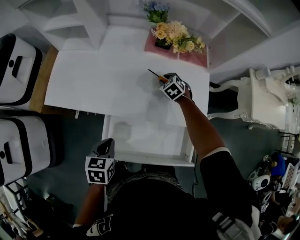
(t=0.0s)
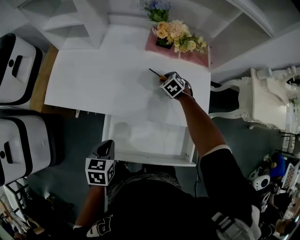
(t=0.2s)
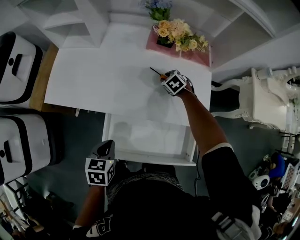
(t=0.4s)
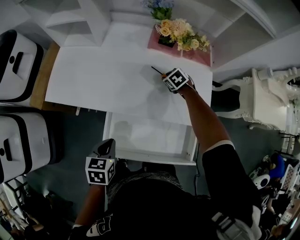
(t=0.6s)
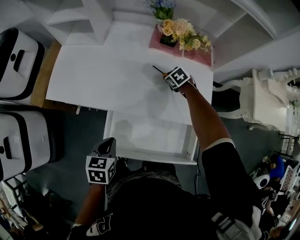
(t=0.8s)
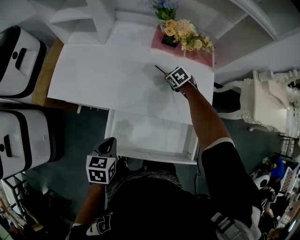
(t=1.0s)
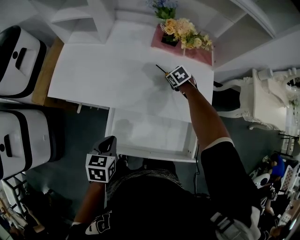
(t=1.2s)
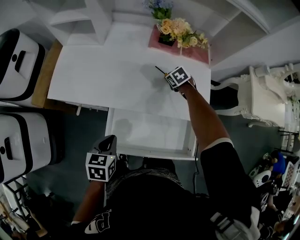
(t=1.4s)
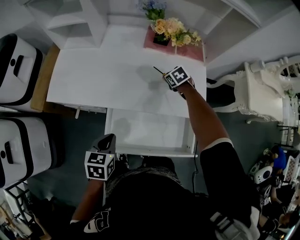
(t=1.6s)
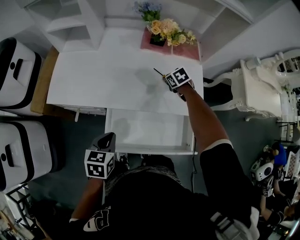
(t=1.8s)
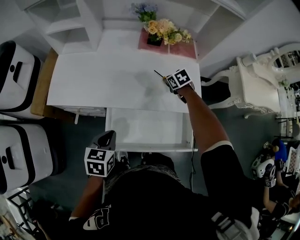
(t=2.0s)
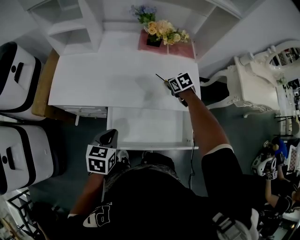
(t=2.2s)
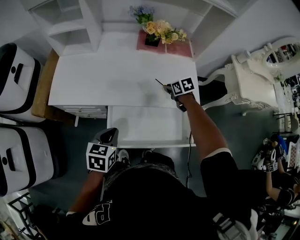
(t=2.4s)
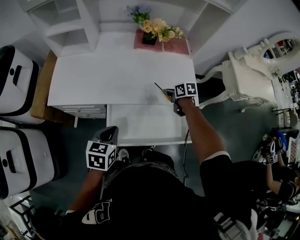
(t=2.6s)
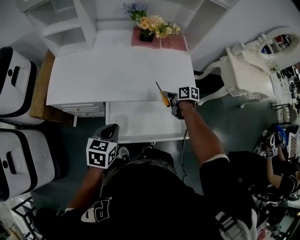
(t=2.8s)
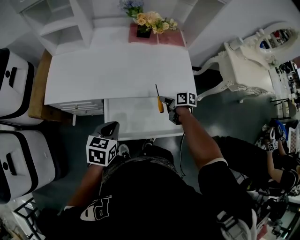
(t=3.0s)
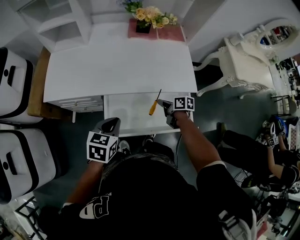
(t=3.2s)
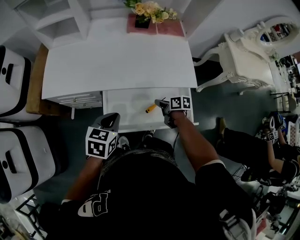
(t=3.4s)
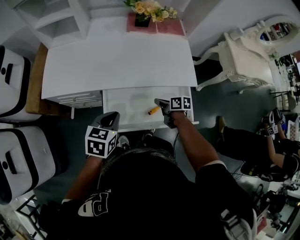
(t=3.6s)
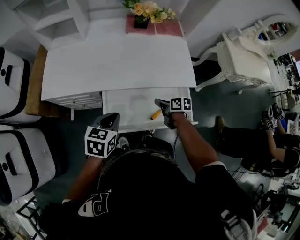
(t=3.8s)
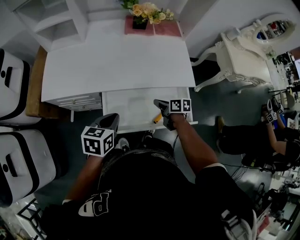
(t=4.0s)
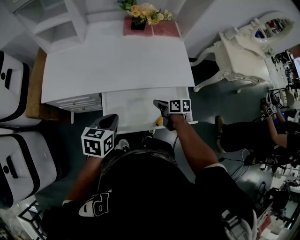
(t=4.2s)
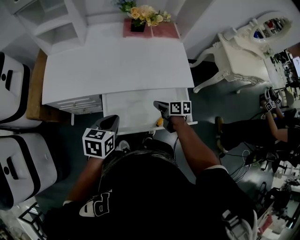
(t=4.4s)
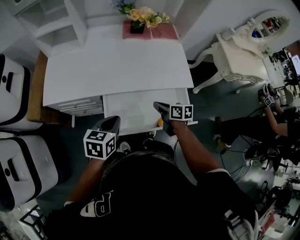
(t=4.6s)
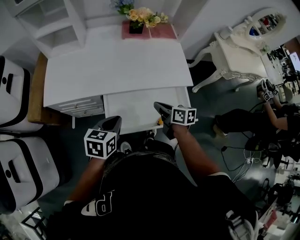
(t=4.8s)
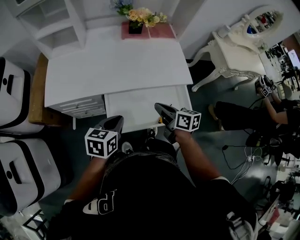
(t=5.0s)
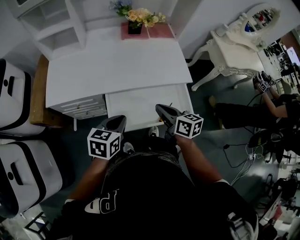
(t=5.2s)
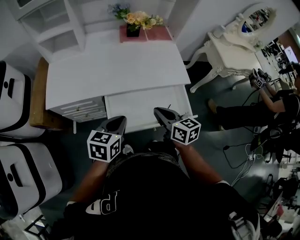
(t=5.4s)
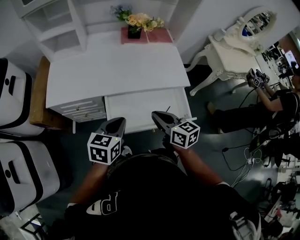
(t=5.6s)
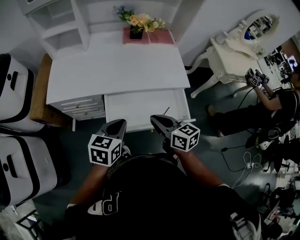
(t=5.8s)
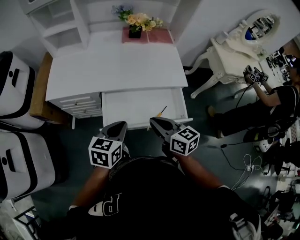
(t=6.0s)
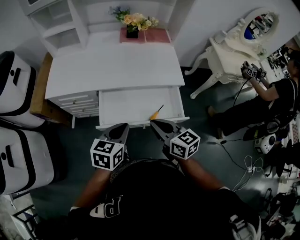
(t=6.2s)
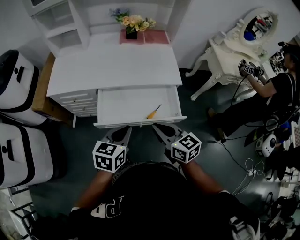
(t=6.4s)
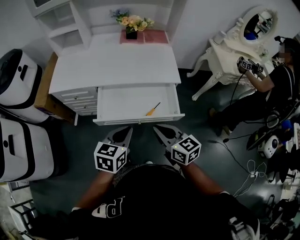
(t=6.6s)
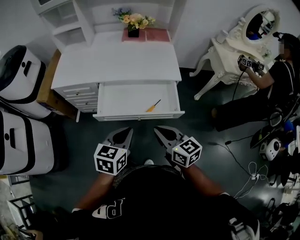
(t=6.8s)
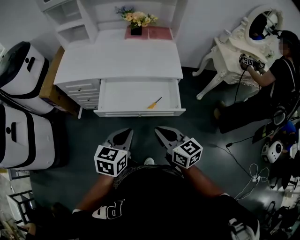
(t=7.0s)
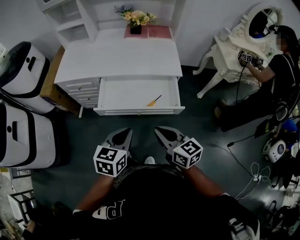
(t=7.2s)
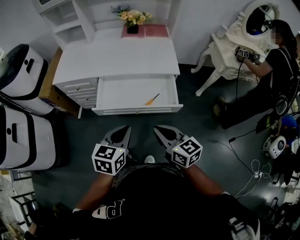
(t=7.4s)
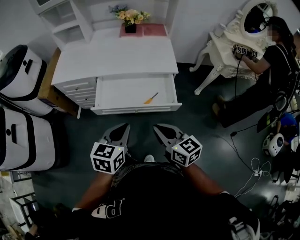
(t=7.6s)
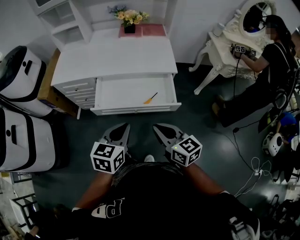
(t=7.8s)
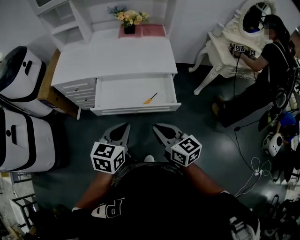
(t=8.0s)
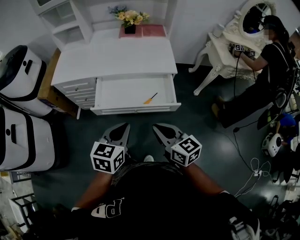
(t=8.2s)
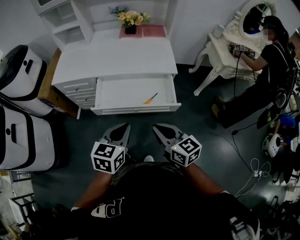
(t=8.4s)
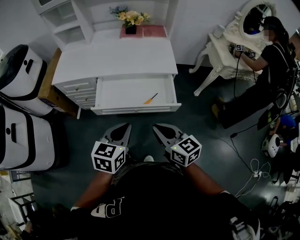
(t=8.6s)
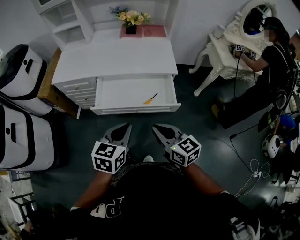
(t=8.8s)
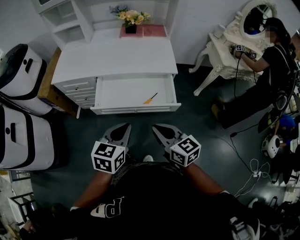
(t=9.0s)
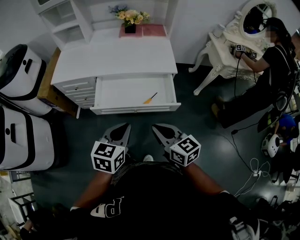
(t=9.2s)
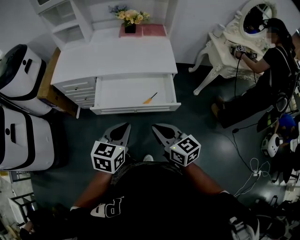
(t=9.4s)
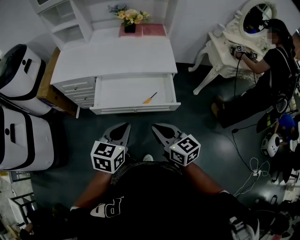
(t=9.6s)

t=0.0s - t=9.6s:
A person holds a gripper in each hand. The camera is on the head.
t=0.0s - t=1.6s: There are only small adjustments of the grippers.
t=1.6s - t=3.2s: The right gripper travels backward by roughly 25 cm, twists about 60 degrees clockwise, seen from behind, and closes.
t=3.2s - t=4.8s: The right gripper shifts roughly 15 cm upward, backward and to the left.
t=4.8s - t=6.4s: The left gripper moves backward and to the right, roughly 20 cm. Meanwhile the right gripper travels backward and upward by about 25 cm, and changes its angle by about 30 degrees.
t=6.4s - t=8.0s: The right gripper shifts about 10 cm backward and to the right. Meanwhile the left gripper heads backward, covering some 10 cm.
t=8.0s - t=9.6s: The two grippers keep their place.

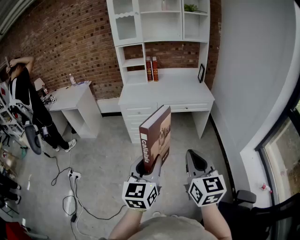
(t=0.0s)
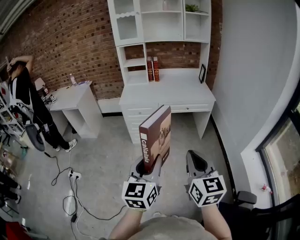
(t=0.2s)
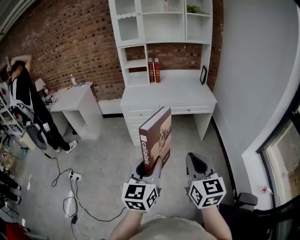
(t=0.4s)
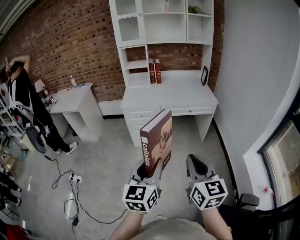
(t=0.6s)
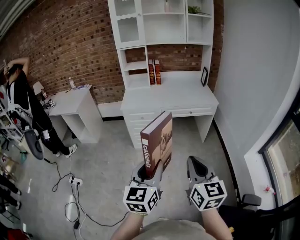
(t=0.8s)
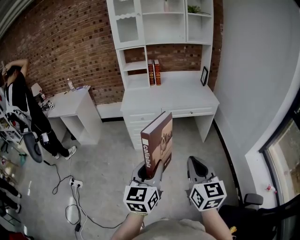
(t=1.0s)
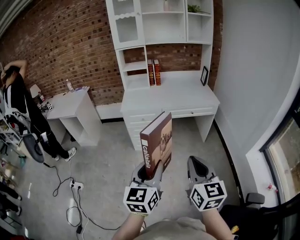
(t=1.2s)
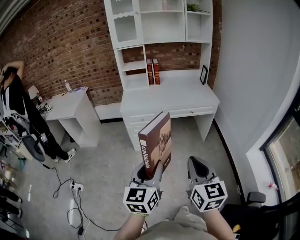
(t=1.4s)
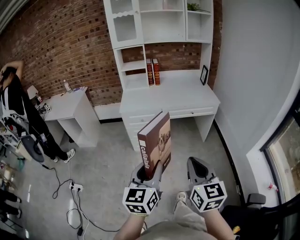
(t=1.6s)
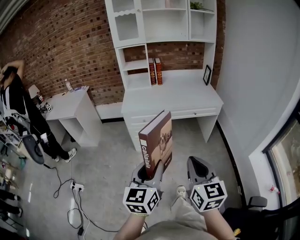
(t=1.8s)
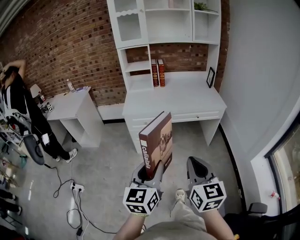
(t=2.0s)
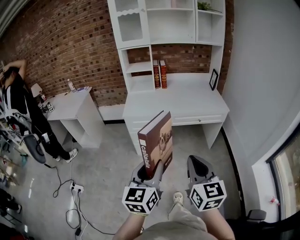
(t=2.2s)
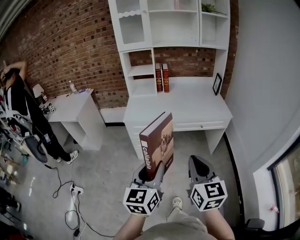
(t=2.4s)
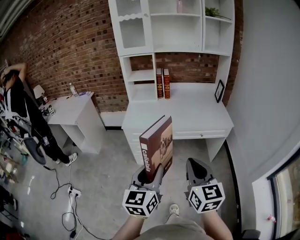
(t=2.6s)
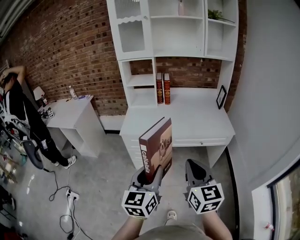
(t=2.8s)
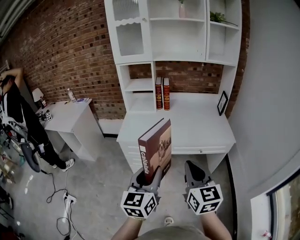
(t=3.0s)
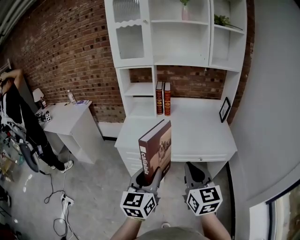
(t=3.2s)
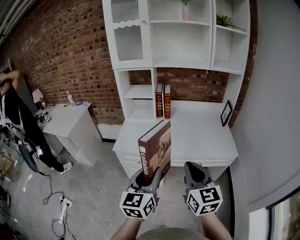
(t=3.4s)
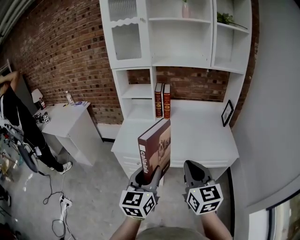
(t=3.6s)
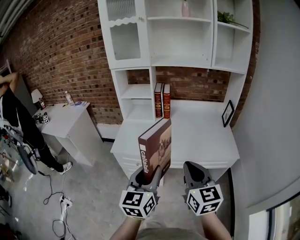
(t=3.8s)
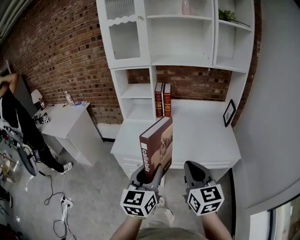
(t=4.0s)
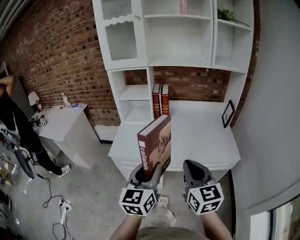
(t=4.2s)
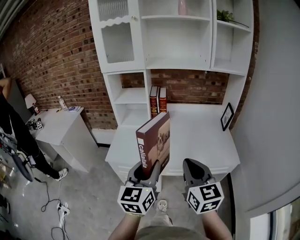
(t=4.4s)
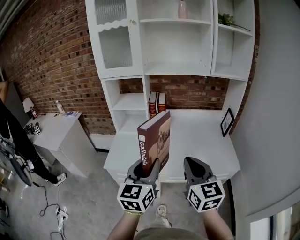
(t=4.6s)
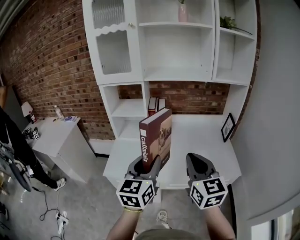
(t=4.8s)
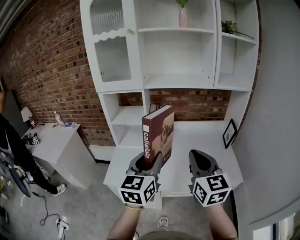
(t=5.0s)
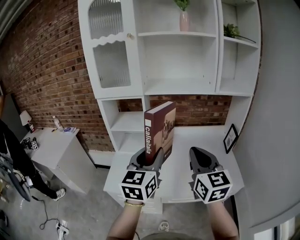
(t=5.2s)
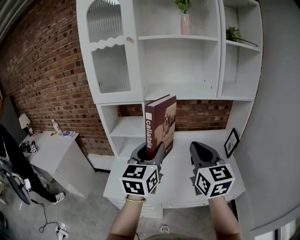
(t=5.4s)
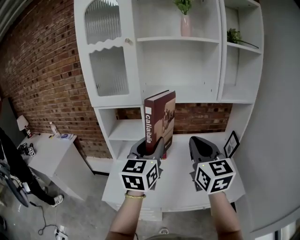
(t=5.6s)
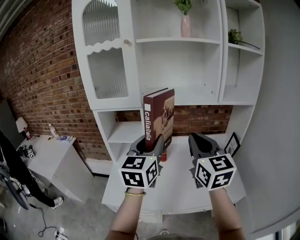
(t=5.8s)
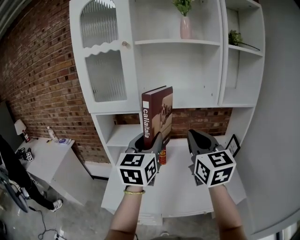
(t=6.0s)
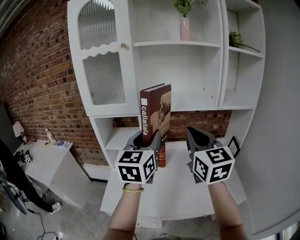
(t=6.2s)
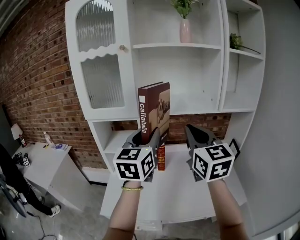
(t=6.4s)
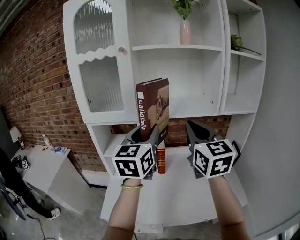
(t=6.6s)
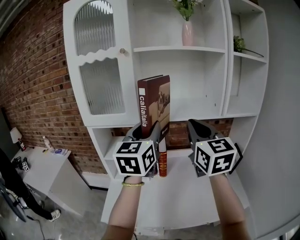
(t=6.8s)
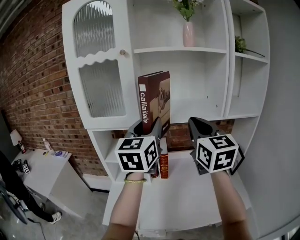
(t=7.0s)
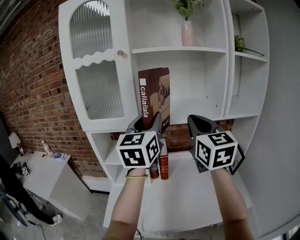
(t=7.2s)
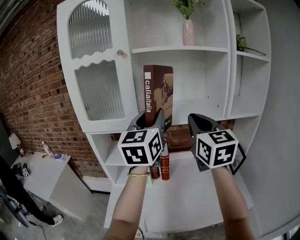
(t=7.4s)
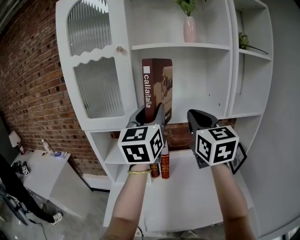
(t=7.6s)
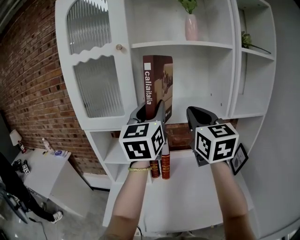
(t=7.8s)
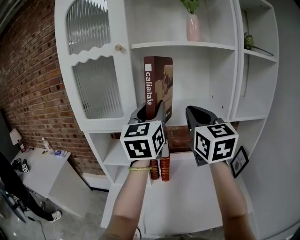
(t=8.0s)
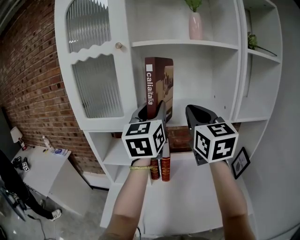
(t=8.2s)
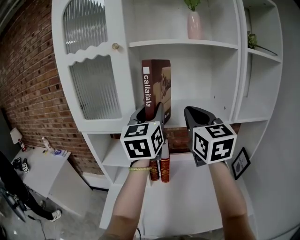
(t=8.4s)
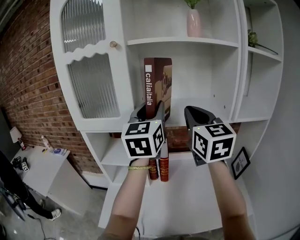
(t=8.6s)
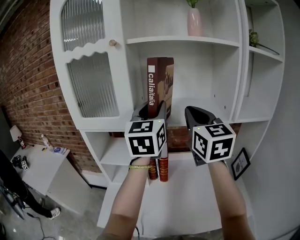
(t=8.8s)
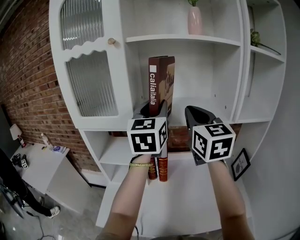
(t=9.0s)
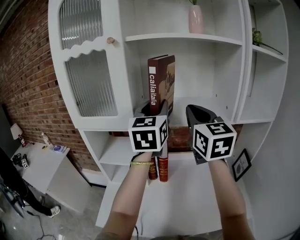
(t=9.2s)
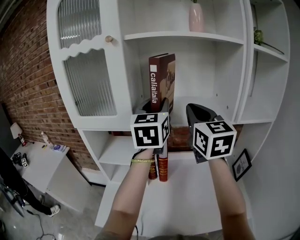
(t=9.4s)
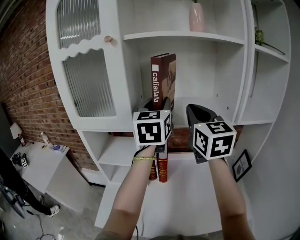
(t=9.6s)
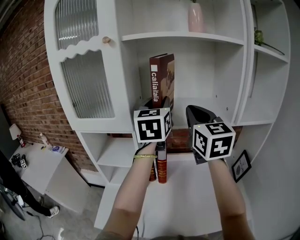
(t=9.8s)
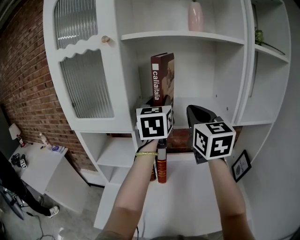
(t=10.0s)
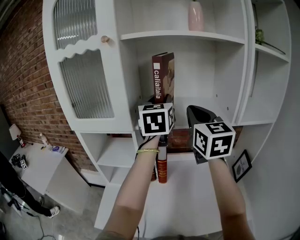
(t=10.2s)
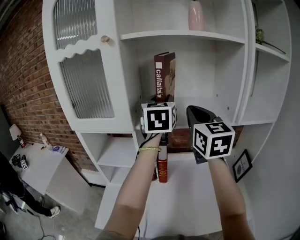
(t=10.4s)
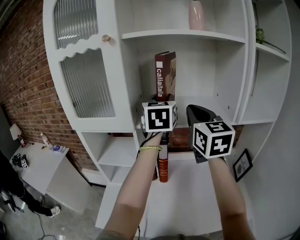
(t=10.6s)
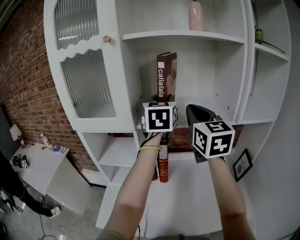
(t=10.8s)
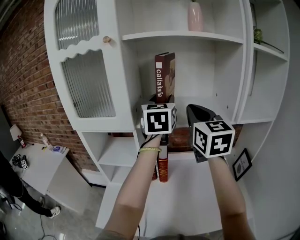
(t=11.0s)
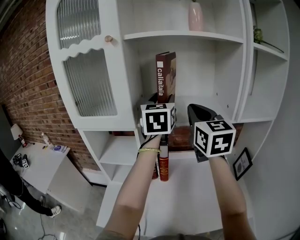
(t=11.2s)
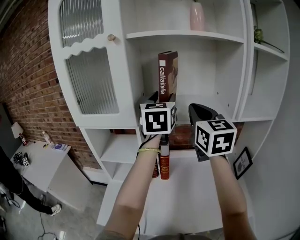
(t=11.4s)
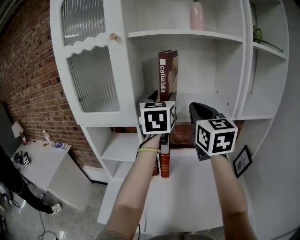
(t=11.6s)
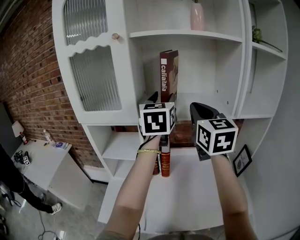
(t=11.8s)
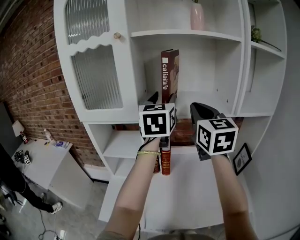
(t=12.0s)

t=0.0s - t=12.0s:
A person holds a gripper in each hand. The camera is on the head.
t=0.0s - t=1.6s: Both grippers move forward and to the left, approximately 10 cm.
t=1.6s - t=3.0s: The two grippers go approximately 30 cm forward.
t=3.0s - t=4.4s: Both grippers travel together forward, roughly 20 cm.
t=4.4s - t=6.0s: The grippers both shift forward and upward by roughly 35 cm.
t=6.0s - t=7.6s: The two grippers go roughly 15 cm forward and upward.
t=7.6s - t=9.0s: Both grippers move forward, roughly 5 cm.
t=9.0s - t=10.4s: The left gripper goes some 10 cm forward.
t=10.4s - t=12.0s: The left gripper heads backward, covering approximately 5 cm.

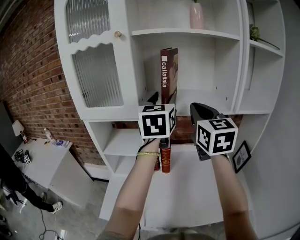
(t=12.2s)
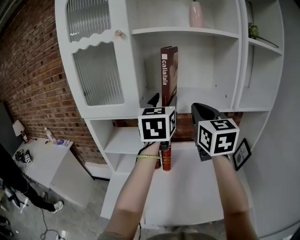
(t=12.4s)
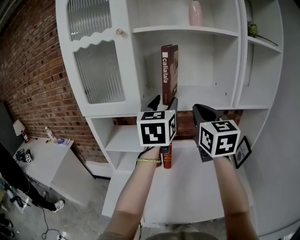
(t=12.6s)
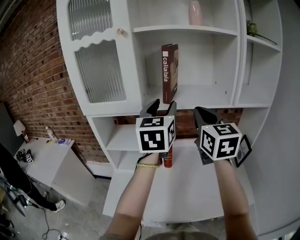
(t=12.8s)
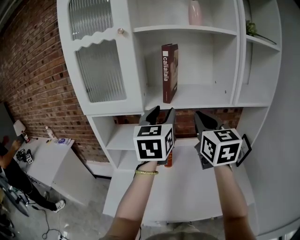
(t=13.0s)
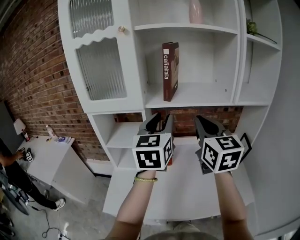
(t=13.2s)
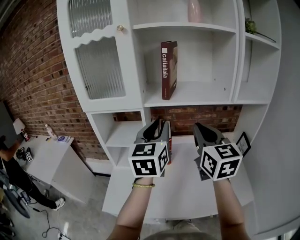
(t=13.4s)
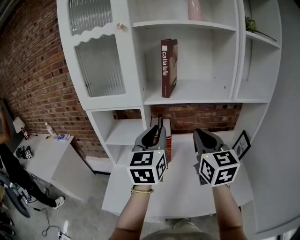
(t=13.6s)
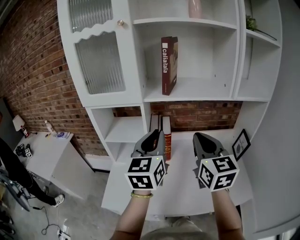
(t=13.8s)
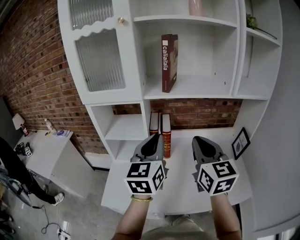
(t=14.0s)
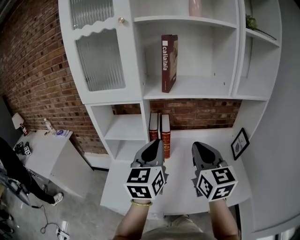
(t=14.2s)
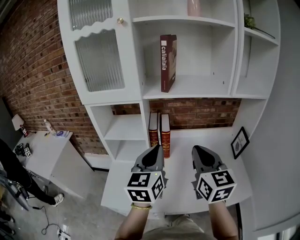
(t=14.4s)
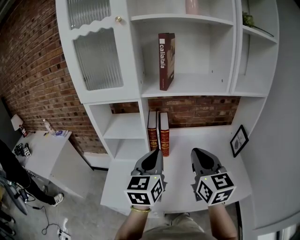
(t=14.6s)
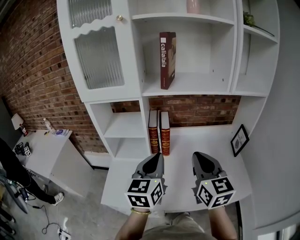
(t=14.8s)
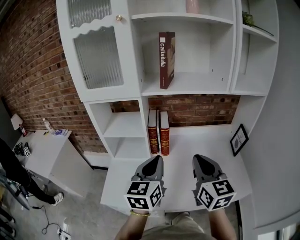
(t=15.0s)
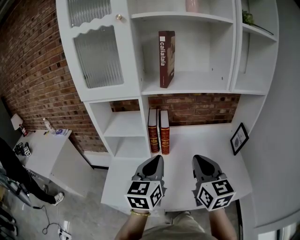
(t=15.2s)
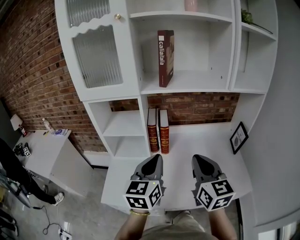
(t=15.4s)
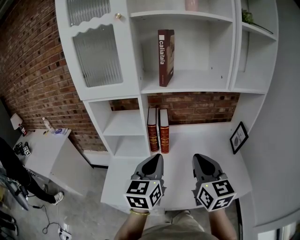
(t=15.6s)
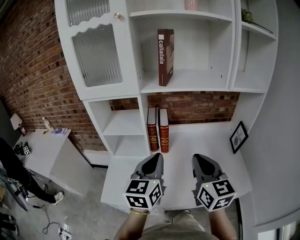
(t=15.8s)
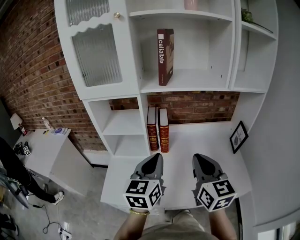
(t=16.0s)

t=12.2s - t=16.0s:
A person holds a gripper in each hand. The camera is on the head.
t=12.2s - t=13.4s: Both grippers travel together backward and downward, approximately 15 cm. The left gripper closes up.
t=13.4s - t=14.8s: Both grippers move downward and backward, some 15 cm. The left gripper closes.
t=14.8s - t=16.0s: There are only small adjustments of the grippers.
